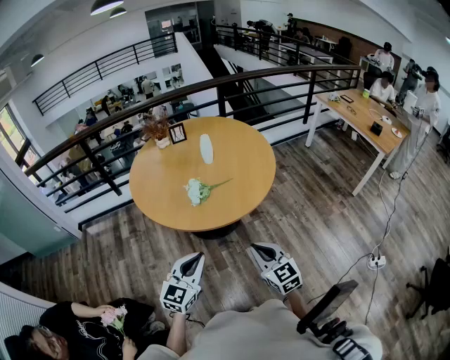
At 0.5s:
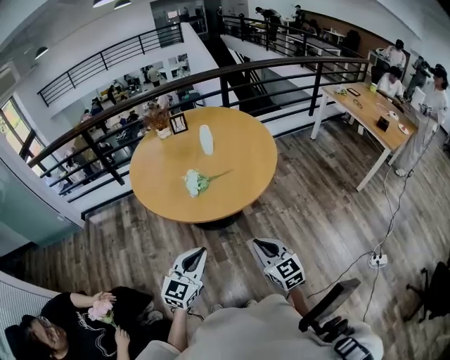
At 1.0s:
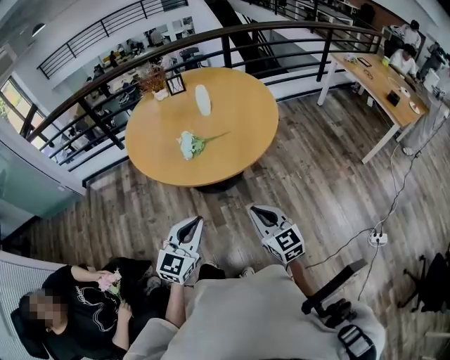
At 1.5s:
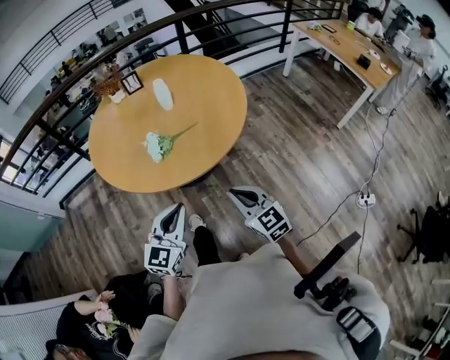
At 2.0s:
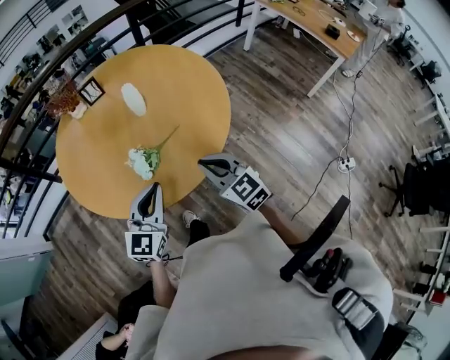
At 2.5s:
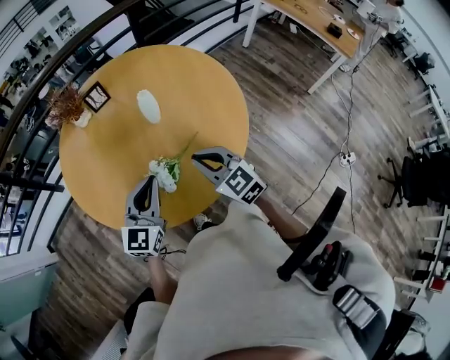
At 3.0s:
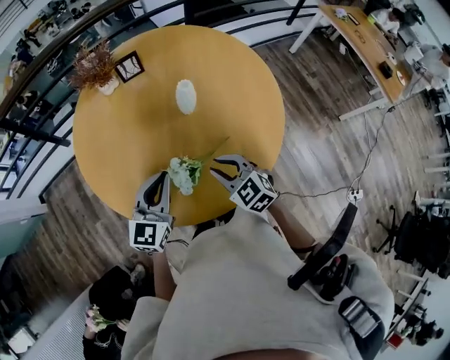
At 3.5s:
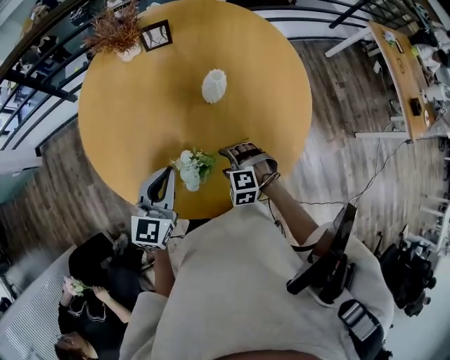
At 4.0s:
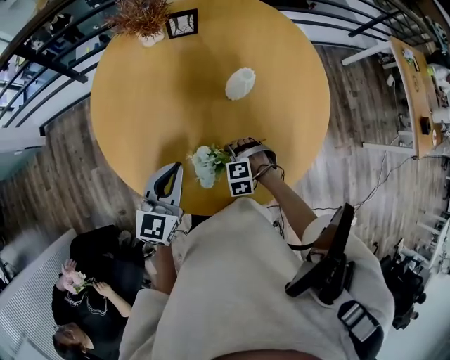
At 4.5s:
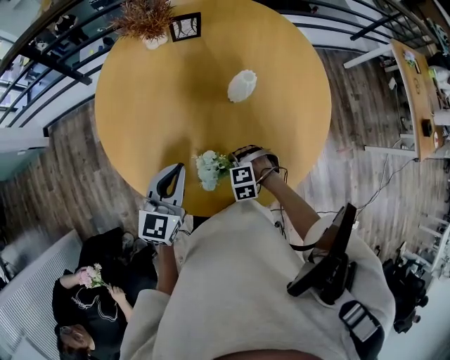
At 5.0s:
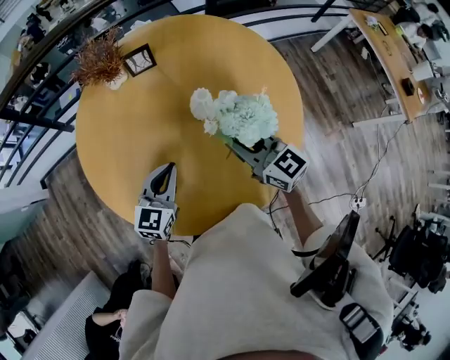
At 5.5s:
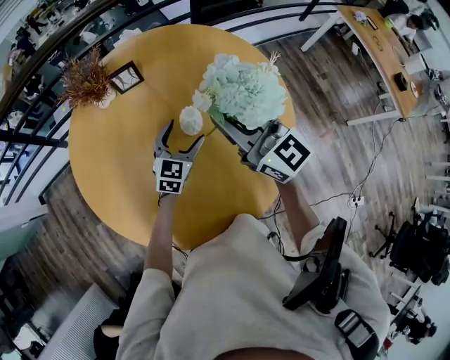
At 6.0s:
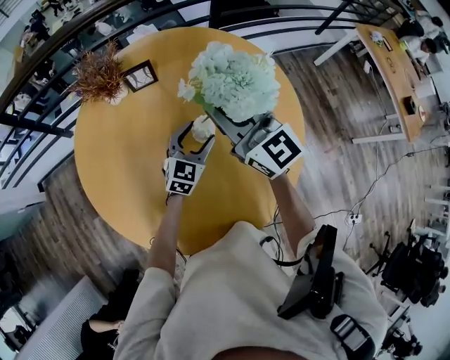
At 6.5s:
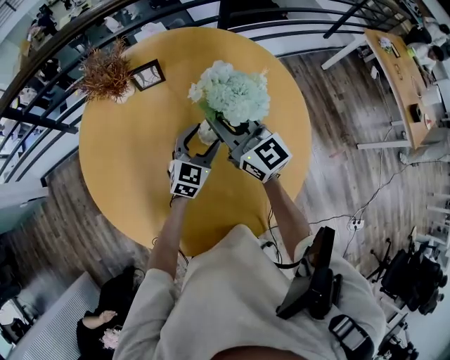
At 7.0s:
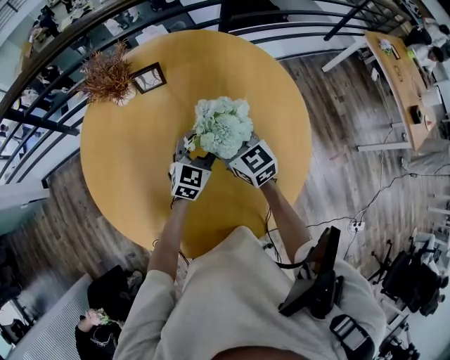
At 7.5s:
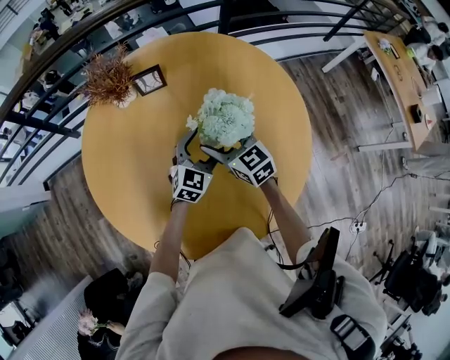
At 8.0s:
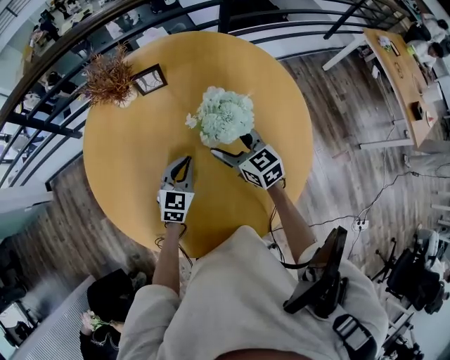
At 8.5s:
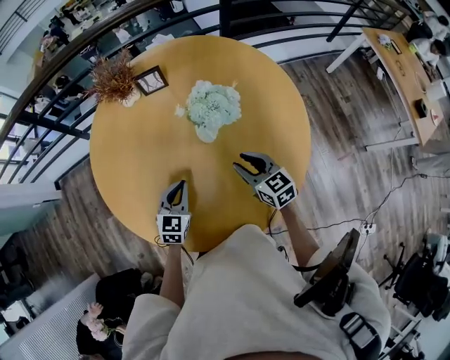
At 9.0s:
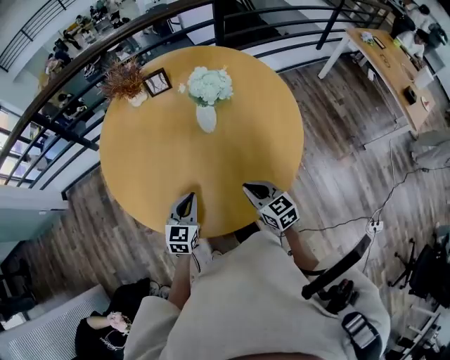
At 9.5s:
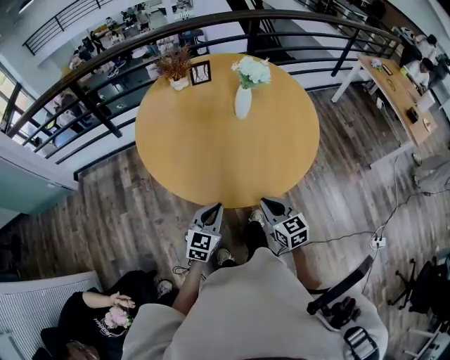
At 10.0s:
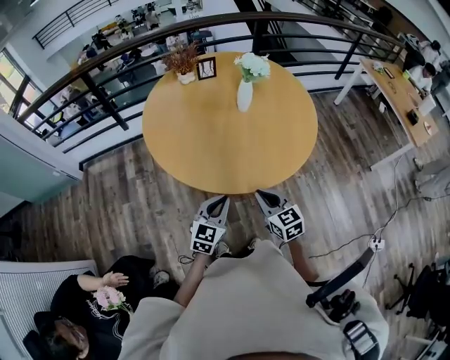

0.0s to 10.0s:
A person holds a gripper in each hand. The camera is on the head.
0.0s to 2.0s: Both grippers move forward, approximately 20 cm.
2.0s to 4.0s: The right gripper goes approximately 25 cm downward, tilts its fingers approximately 60 degrees downward, and opens, while the left gripper changes place by roughly 20 cm, and turns by approximately 30 degrees.
4.0s to 6.0s: The left gripper moves some 30 cm, changes its angle by some 20 degrees, and opens up. Meanwhile the right gripper shifts about 40 cm upward, points its fingers about 80 degrees further upward, and closes its fingers.
6.0s to 8.0s: The left gripper moves to the left and backward, approximately 10 cm, and closes up; the right gripper heads downward, covering roughly 20 cm, changes its angle by roughly 30 degrees, and opens up.
8.0s to 10.0s: Both grippers travel together backward, approximately 40 cm. The right gripper closes.

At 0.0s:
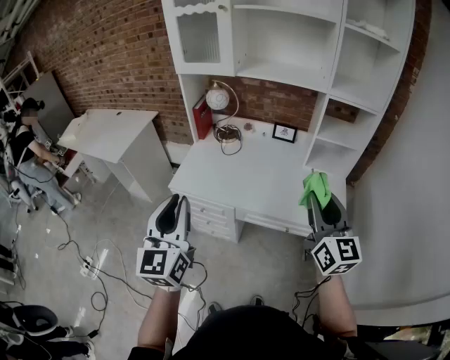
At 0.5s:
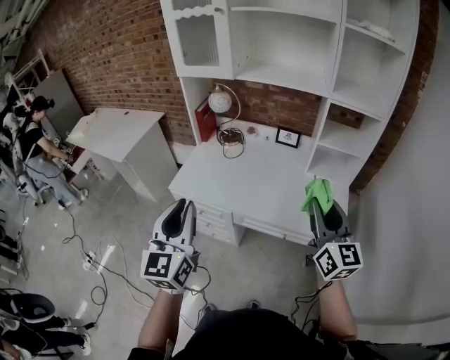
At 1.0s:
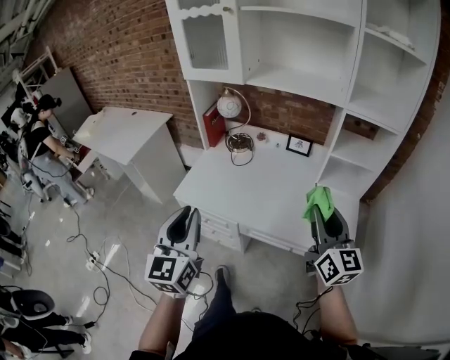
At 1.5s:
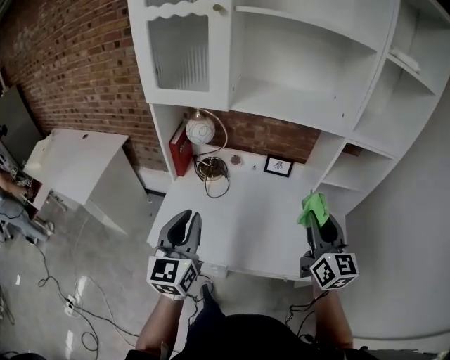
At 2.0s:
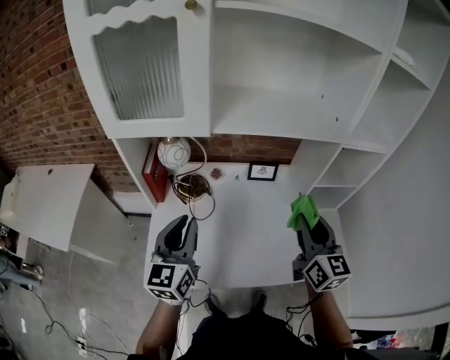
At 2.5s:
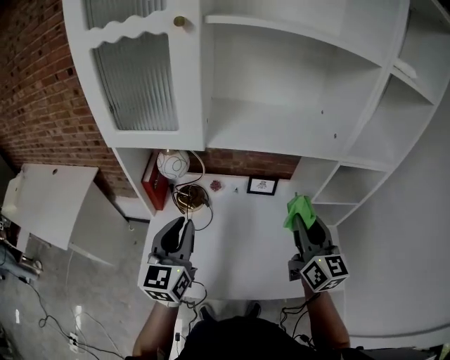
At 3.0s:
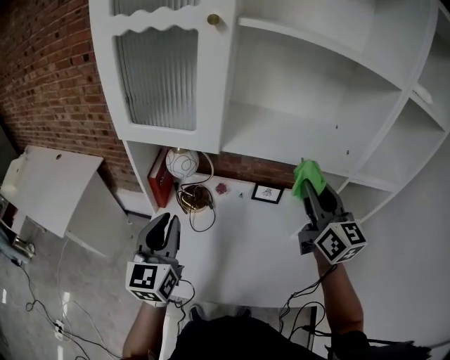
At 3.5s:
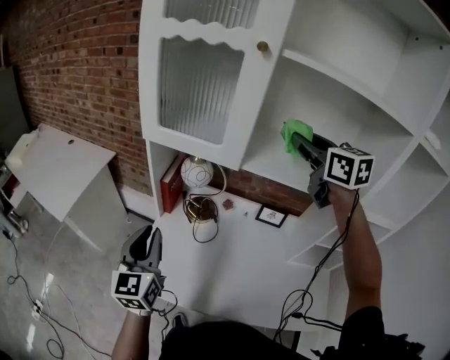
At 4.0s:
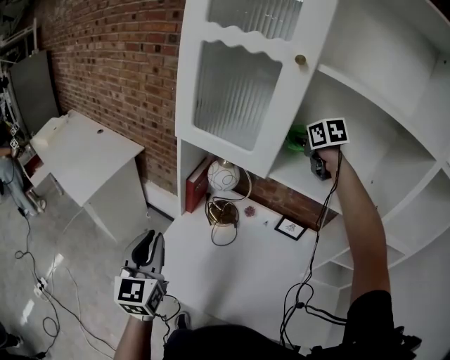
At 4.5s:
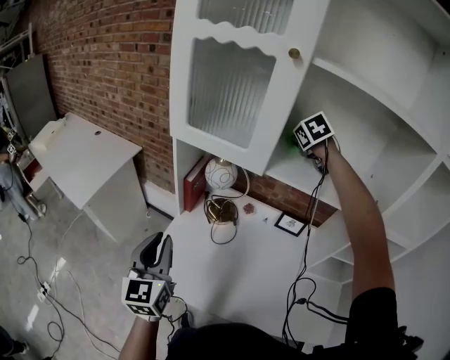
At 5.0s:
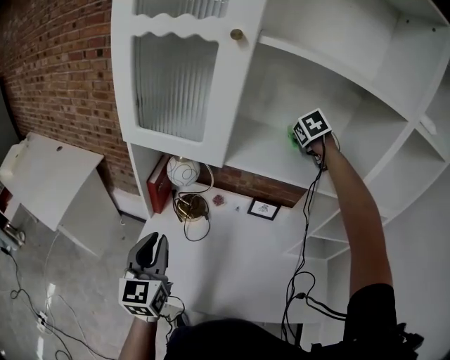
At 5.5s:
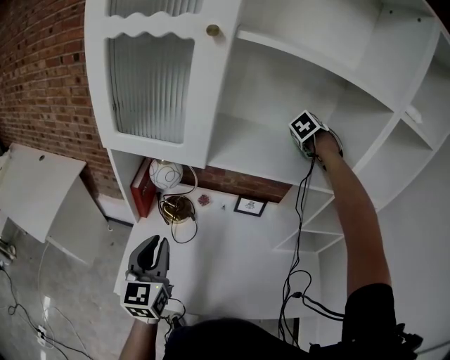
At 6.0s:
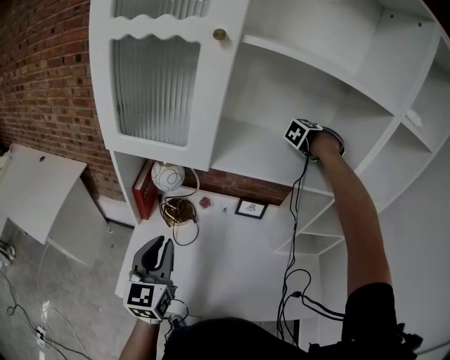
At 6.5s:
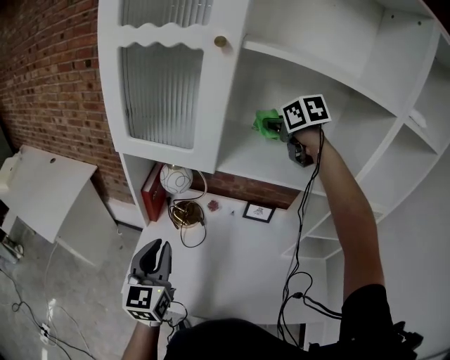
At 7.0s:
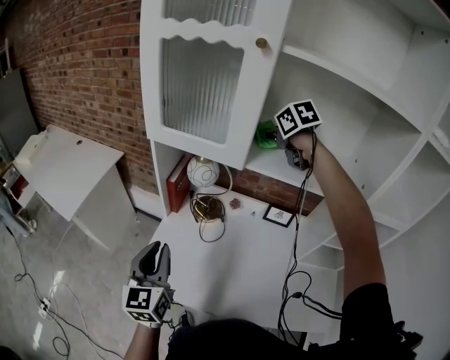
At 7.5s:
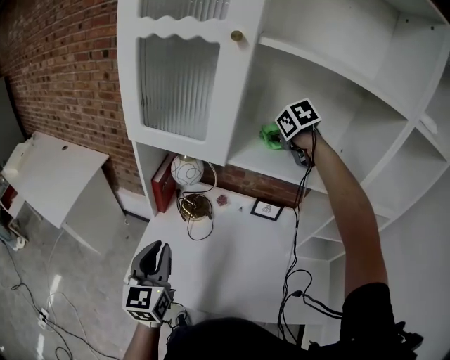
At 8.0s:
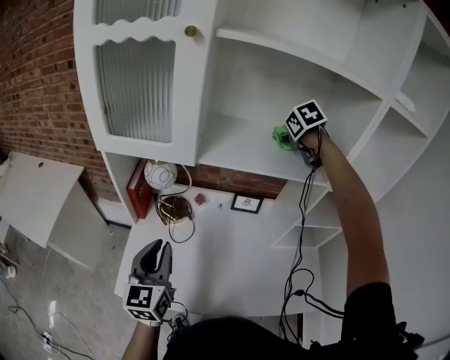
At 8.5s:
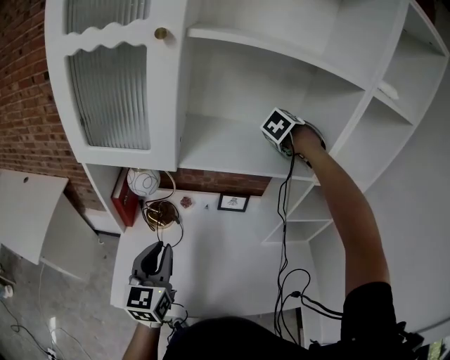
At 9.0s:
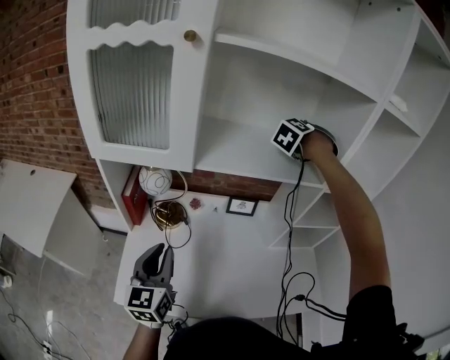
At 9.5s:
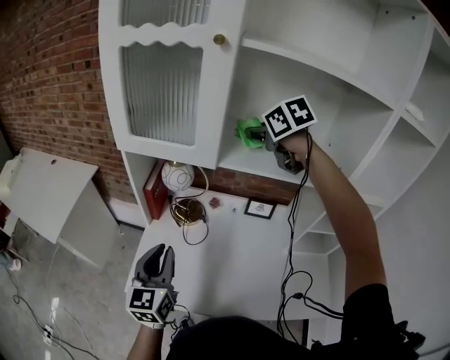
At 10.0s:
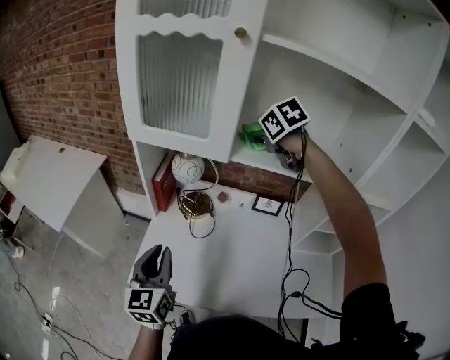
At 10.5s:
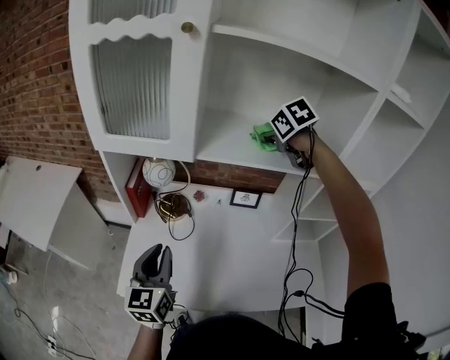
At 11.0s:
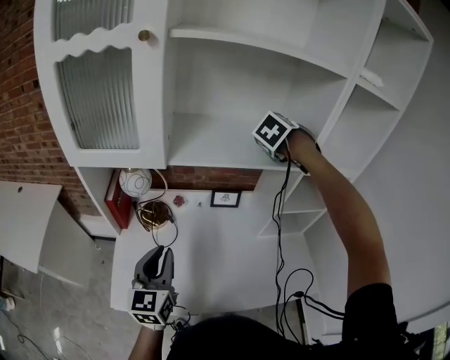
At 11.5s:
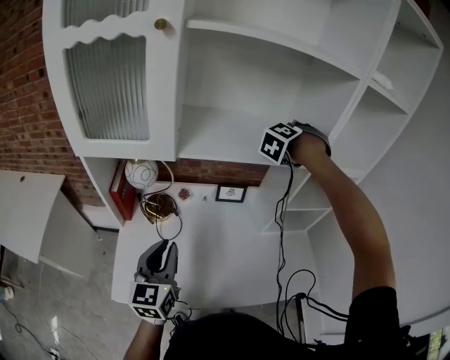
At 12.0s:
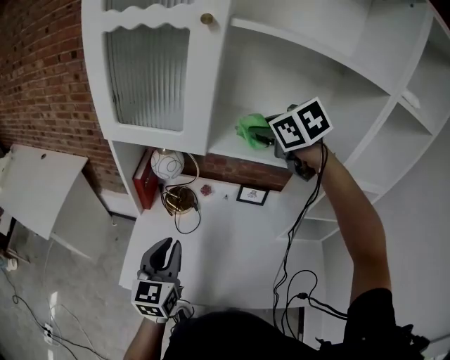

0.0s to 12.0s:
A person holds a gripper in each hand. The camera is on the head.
0.0s to 2.0s: Both grippers move forward, about 40 cm. The left gripper turns by approximately 30 degrees.
2.0s to 4.0s: The right gripper shifts by some 40 cm, and angles its fingers downward, by approximately 30 degrees. The left gripper moves roughly 15 cm, and changes its angle by approximately 30 degrees.
4.0s to 6.0s: The left gripper shifts by roughly 15 cm, and rotates approximately 20 degrees. The right gripper moves about 30 cm, and swivels about 70 degrees.
6.0s to 8.0s: The right gripper moves approximately 10 cm upward and comes back, and rotates some 50 degrees.
8.0s to 10.0s: The right gripper ends up approximately 20 cm from where it was, and swivels approximately 20 degrees, while the left gripper changes place by about 10 cm.

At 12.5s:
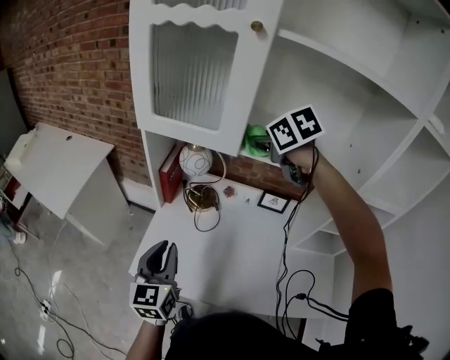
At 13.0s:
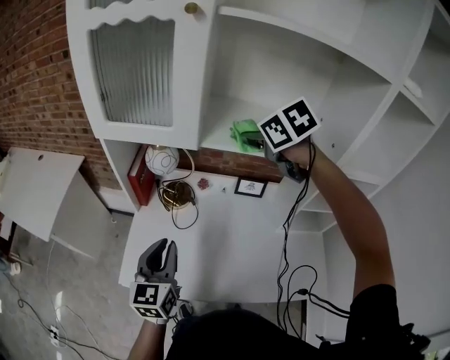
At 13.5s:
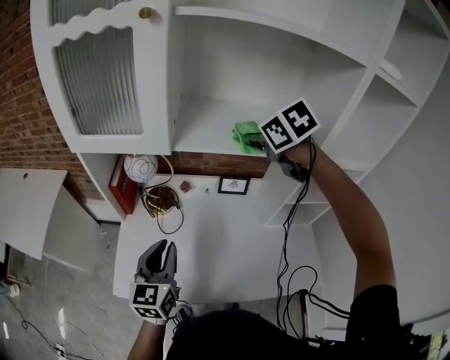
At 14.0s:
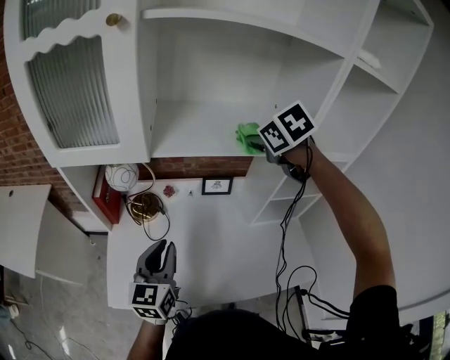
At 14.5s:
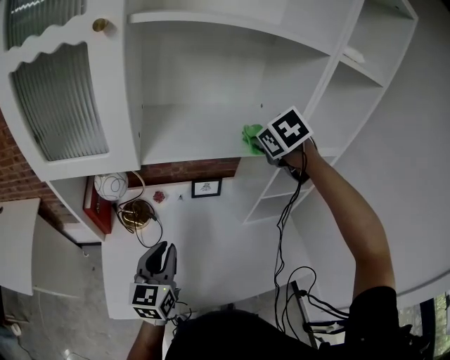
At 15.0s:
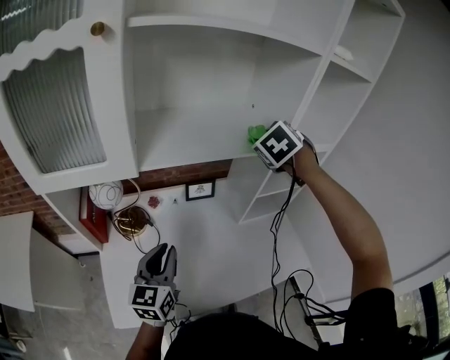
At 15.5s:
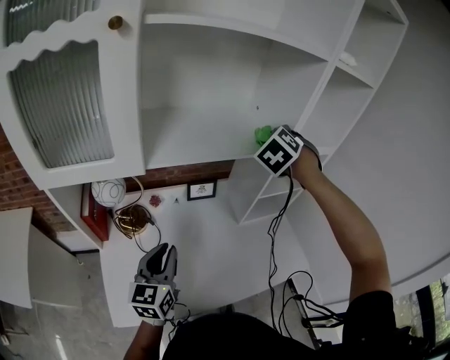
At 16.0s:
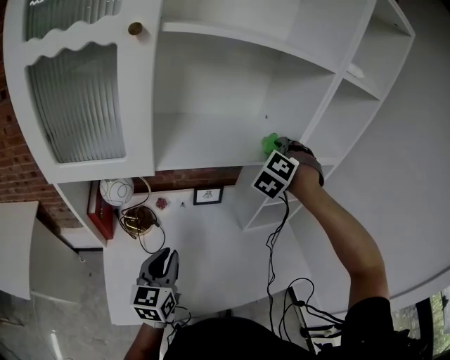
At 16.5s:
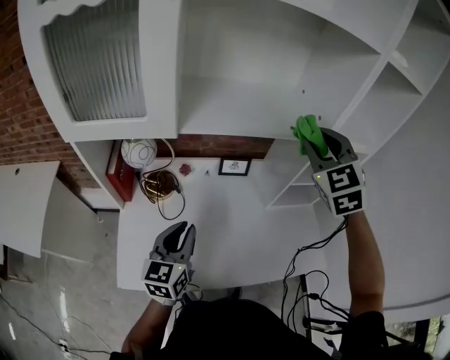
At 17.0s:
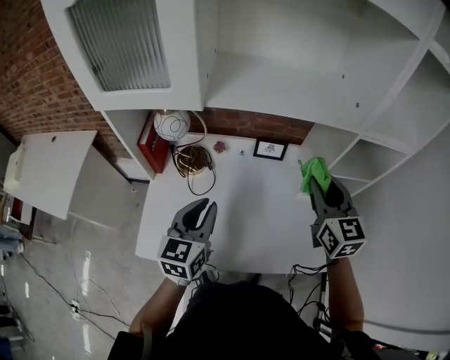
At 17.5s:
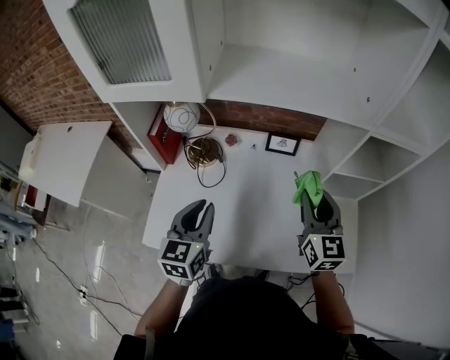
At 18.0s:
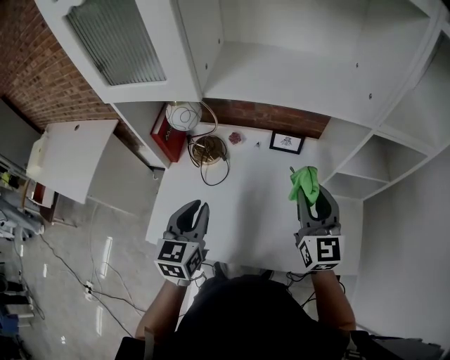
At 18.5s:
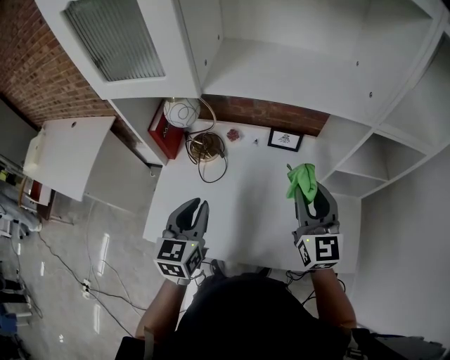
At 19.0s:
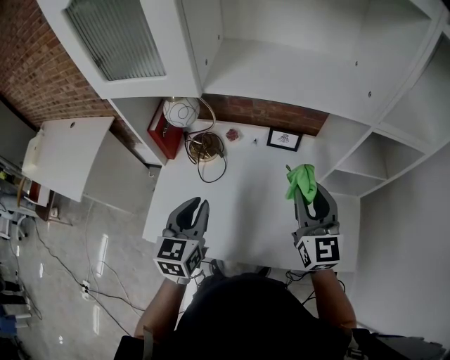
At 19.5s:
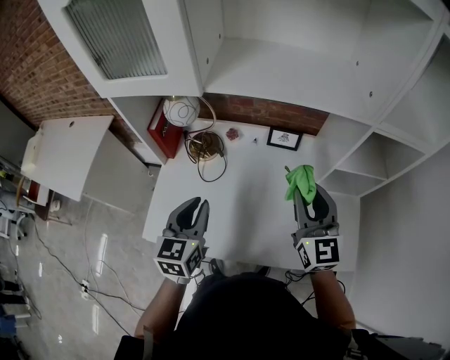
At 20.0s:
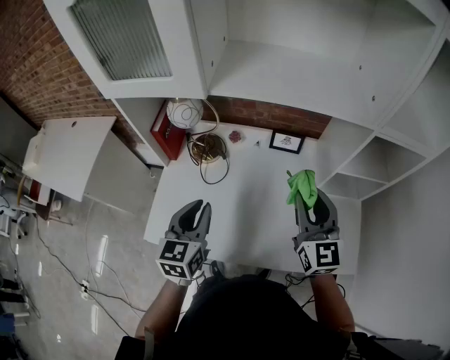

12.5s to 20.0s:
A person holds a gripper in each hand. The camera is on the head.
12.5s to 14.5s: The right gripper ends up approximately 30 cm from where it was, and turns by about 30 degrees, while the left gripper ends up roughly 15 cm from where it was, and swivels some 30 degrees.
14.5s to 16.5s: The right gripper travels backward by some 5 cm, and tilts its fingers some 30 degrees upward.
16.5s to 18.0s: The left gripper swivels approximately 20 degrees. The right gripper travels downward and backward by approximately 20 cm, and turns by some 40 degrees.
18.0s to 20.0s: The grippers make only small movements.
